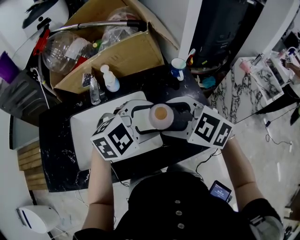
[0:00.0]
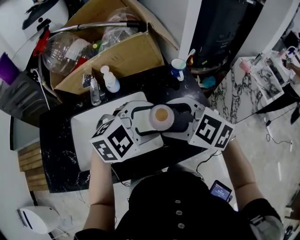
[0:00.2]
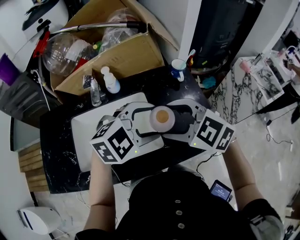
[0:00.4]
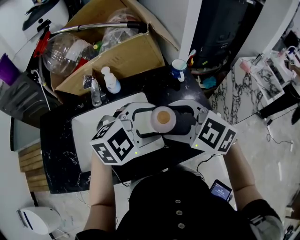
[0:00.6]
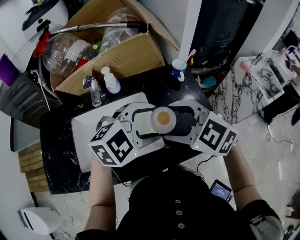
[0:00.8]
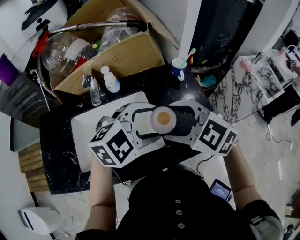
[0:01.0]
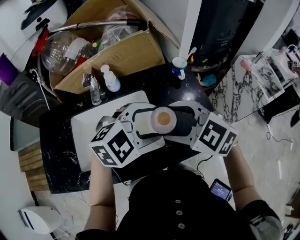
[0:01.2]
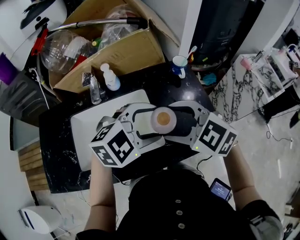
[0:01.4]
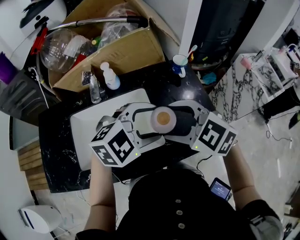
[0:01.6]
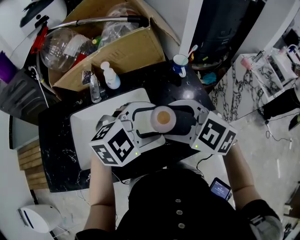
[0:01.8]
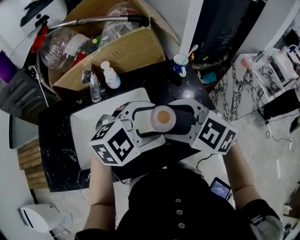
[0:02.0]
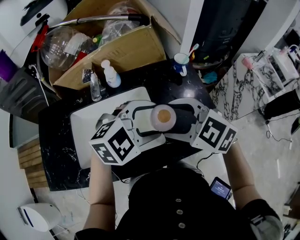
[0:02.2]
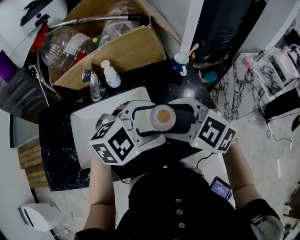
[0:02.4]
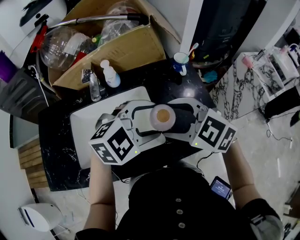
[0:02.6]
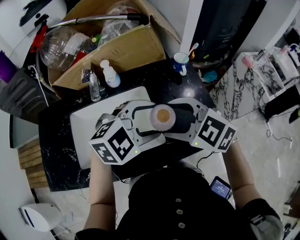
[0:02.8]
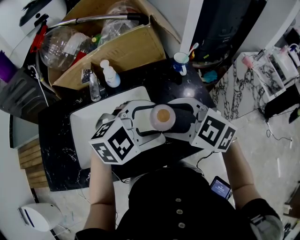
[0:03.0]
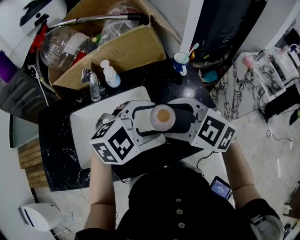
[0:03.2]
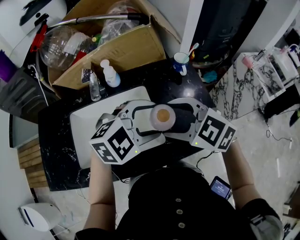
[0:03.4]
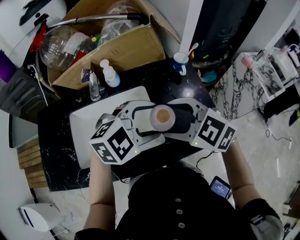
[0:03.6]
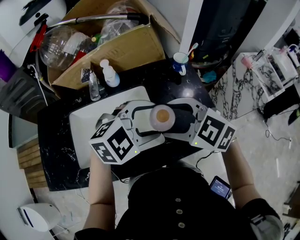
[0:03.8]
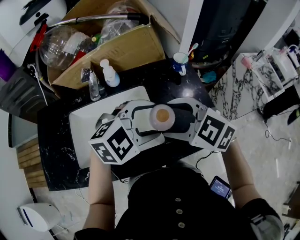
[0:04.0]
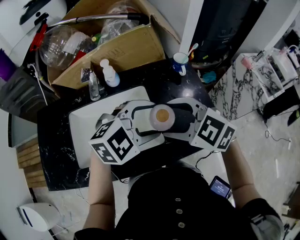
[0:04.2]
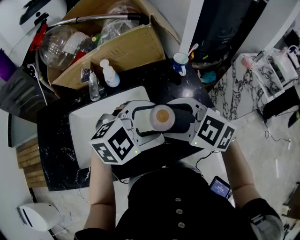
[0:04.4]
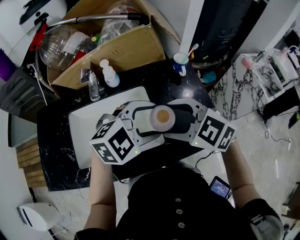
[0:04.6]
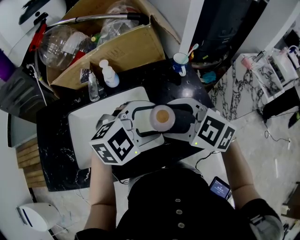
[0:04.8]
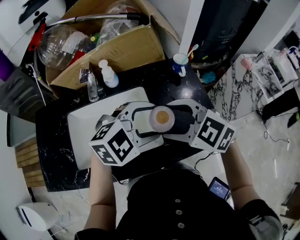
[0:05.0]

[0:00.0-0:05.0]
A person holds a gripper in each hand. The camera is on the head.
0:00.0 to 0:01.6: The grippers stay close to where they were, moving slightly.
0:01.6 to 0:03.4: Neither gripper changes place.
0:03.4 to 0:05.0: Neither gripper changes place.

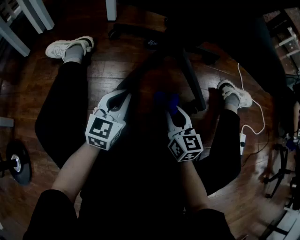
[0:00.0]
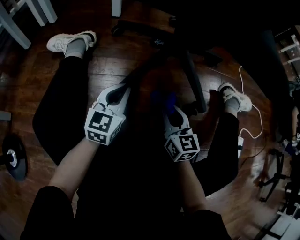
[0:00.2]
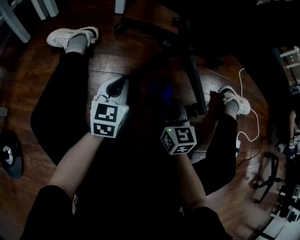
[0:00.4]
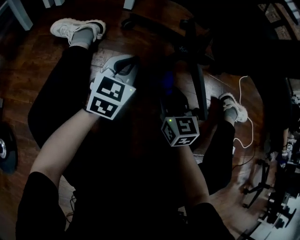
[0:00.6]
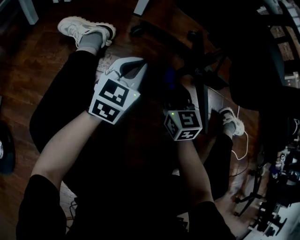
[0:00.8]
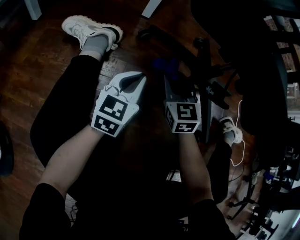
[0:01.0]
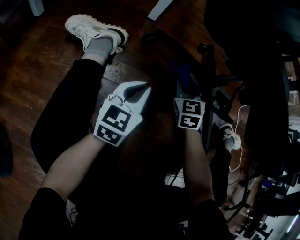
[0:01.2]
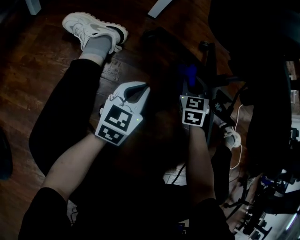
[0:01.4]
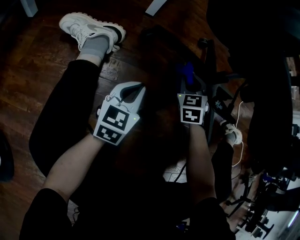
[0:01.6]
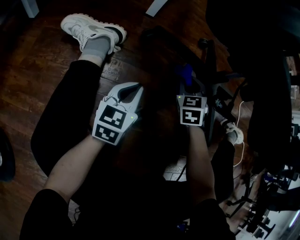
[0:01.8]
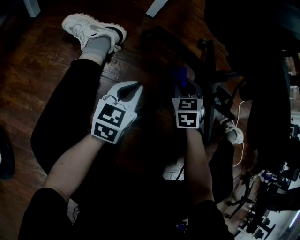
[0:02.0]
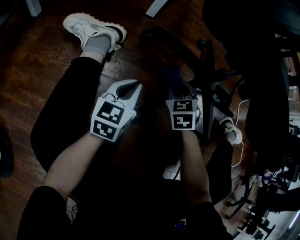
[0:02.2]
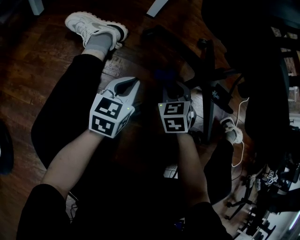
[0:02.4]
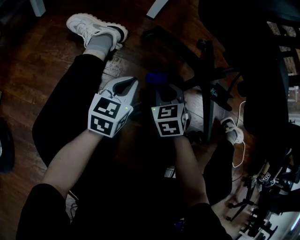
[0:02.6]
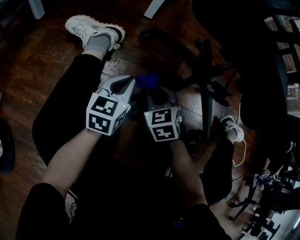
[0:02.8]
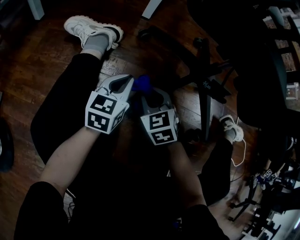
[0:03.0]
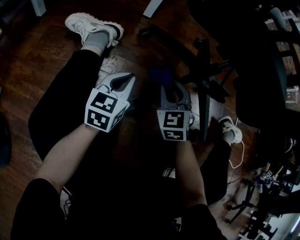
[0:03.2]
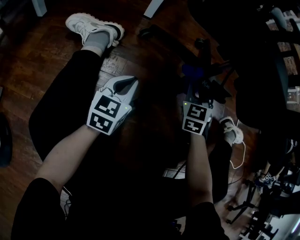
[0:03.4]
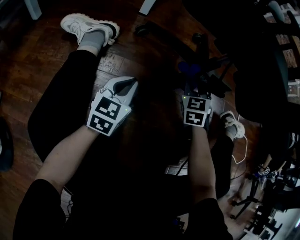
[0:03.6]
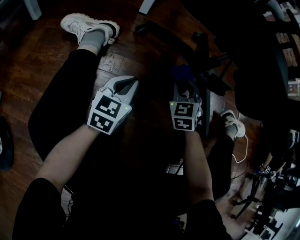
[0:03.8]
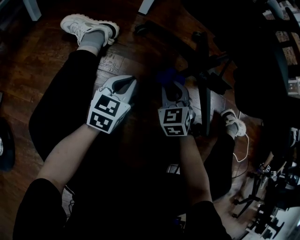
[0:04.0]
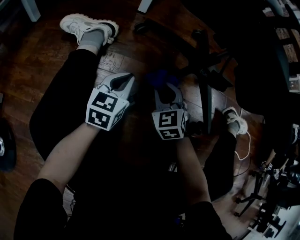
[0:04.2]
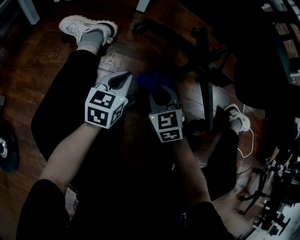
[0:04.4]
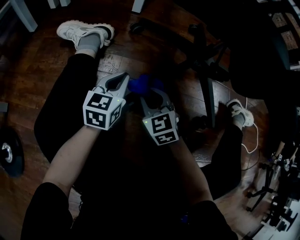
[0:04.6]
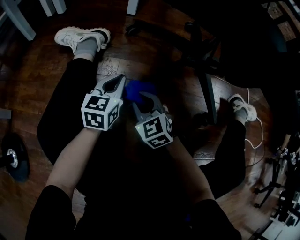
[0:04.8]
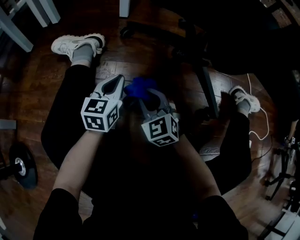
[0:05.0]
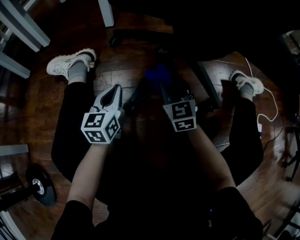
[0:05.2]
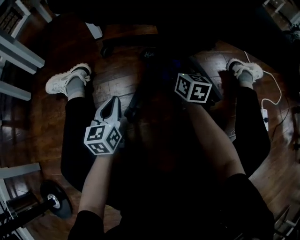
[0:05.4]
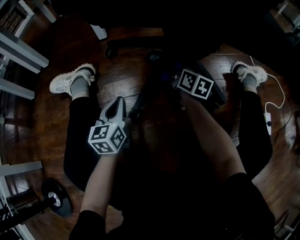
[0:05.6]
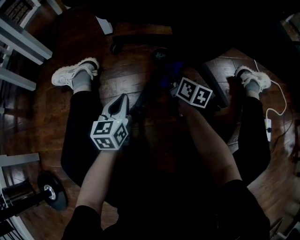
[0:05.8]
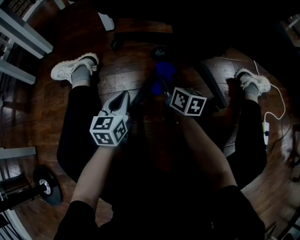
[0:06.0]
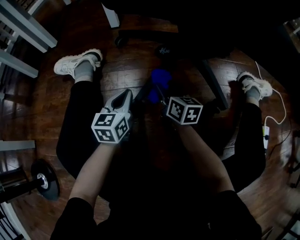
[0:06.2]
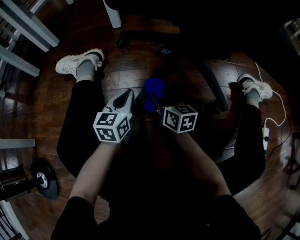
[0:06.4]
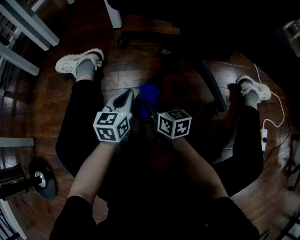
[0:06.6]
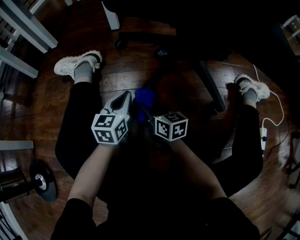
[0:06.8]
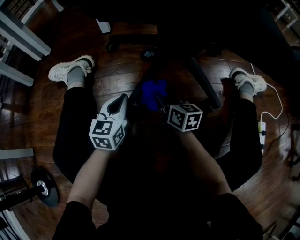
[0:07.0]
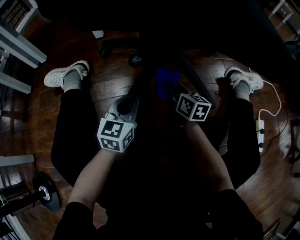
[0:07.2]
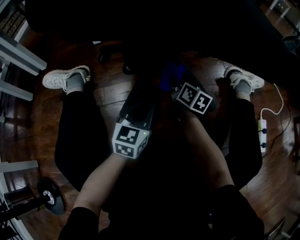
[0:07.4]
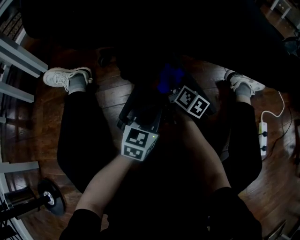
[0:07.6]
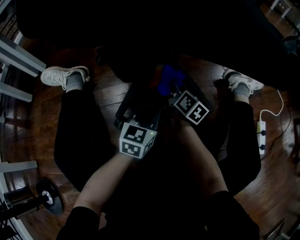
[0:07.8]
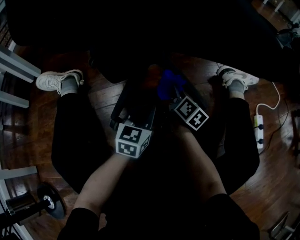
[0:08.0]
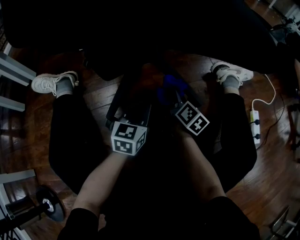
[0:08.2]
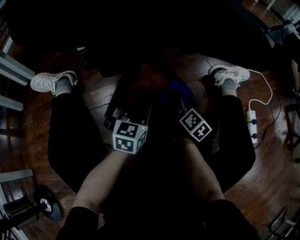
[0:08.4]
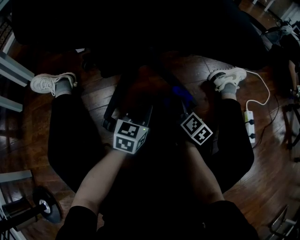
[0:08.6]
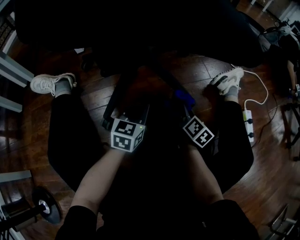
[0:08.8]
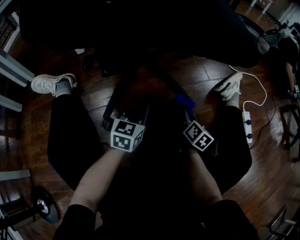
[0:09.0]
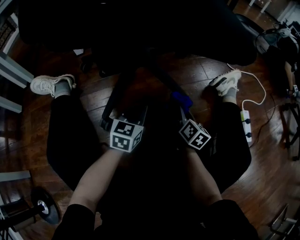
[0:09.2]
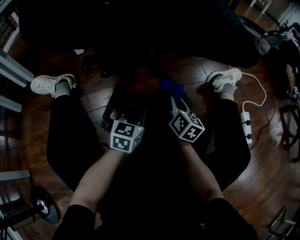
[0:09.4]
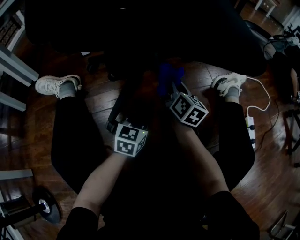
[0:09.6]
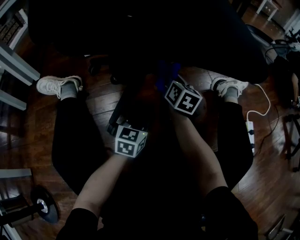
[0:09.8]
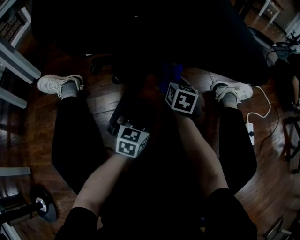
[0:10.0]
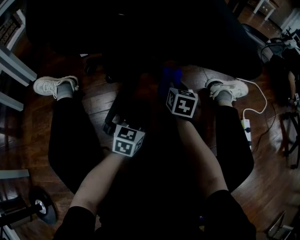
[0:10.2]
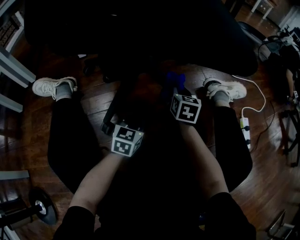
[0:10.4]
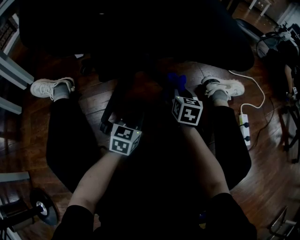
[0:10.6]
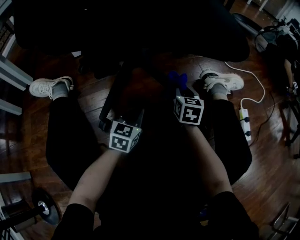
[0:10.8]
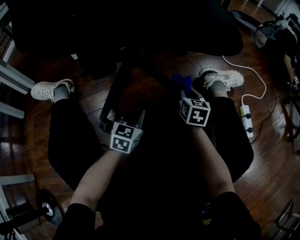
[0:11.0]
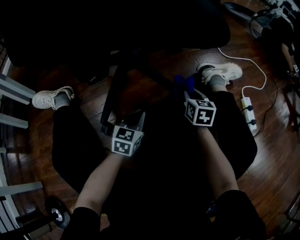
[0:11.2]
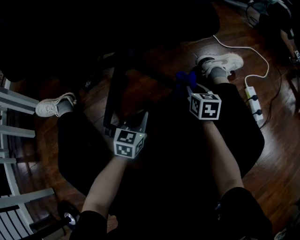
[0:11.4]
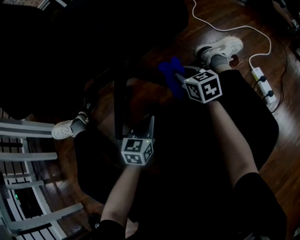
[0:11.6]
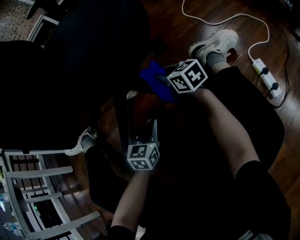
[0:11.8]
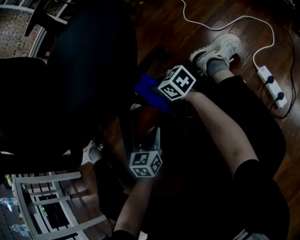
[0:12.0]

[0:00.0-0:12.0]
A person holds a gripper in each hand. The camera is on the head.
0:00.0 to 0:01.6: The left gripper heads forward and to the left, covering approximately 15 cm. Meanwhile the right gripper travels forward and to the left by about 25 cm, and rotates around the line of its fingers by roughly 50 degrees, counterclockwise from behind.
0:01.6 to 0:03.0: The right gripper shifts roughly 20 cm backward and to the left, and rotates some 20 degrees.
0:03.0 to 0:04.4: The right gripper goes to the right and returns, approximately 15 cm each way.
0:04.4 to 0:06.0: The right gripper moves left and right over roughly 20 cm, changing direction 2 times, and rolls clockwise, seen from behind, by approximately 60 degrees.
0:06.0 to 0:07.6: The left gripper changes place by some 20 cm, and changes its angle by about 20 degrees. Meanwhile the right gripper moves approximately 10 cm, and changes its angle by about 20 degrees.
0:07.6 to 0:09.0: The right gripper travels to the right and backward by some 20 cm.
0:09.0 to 0:10.4: The right gripper heads forward, to the left and upward, covering some 15 cm, and rotates approximately 40 degrees.
0:10.4 to 0:12.0: The left gripper is displaced to the right by about 5 cm; the right gripper heads forward, covering roughly 5 cm, and rotates roughly 40 degrees.

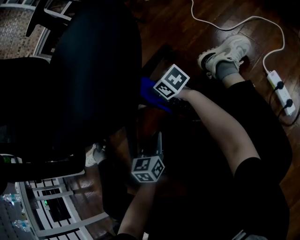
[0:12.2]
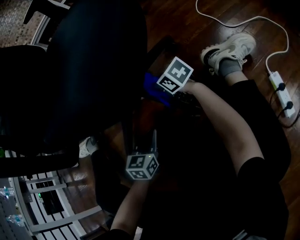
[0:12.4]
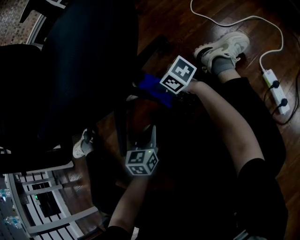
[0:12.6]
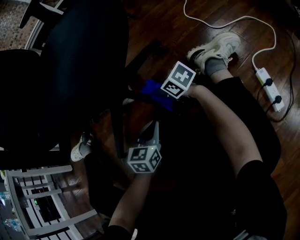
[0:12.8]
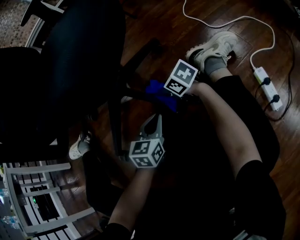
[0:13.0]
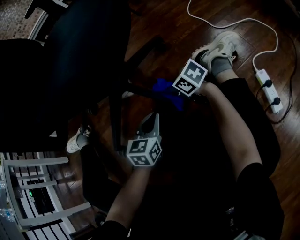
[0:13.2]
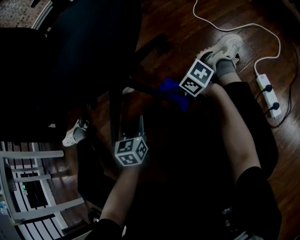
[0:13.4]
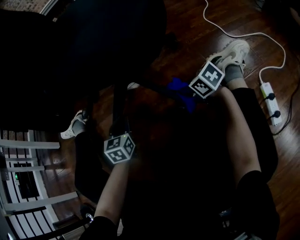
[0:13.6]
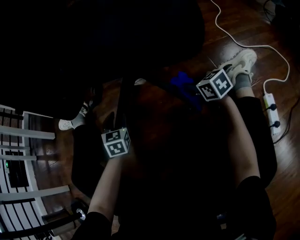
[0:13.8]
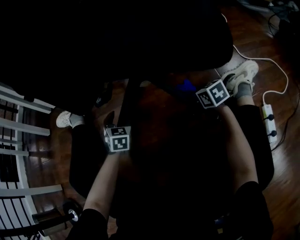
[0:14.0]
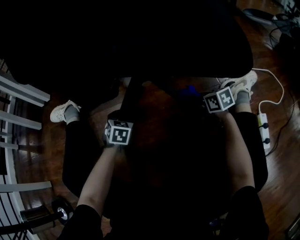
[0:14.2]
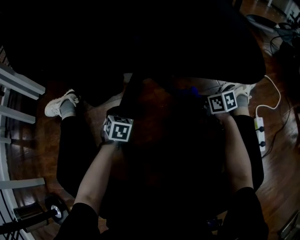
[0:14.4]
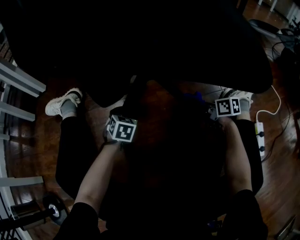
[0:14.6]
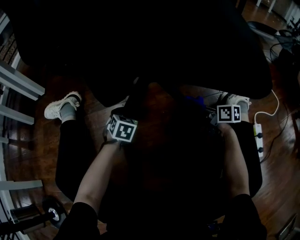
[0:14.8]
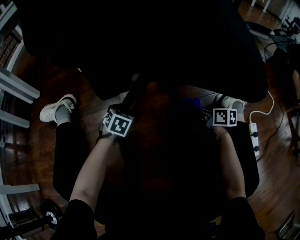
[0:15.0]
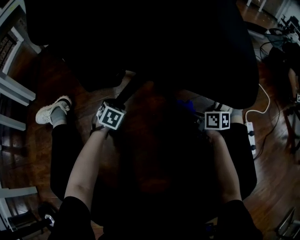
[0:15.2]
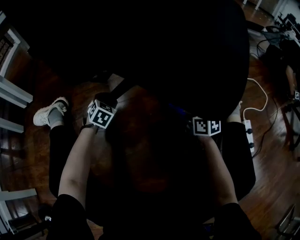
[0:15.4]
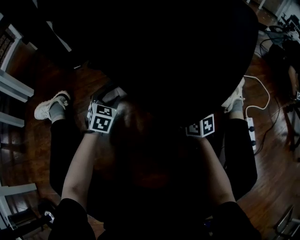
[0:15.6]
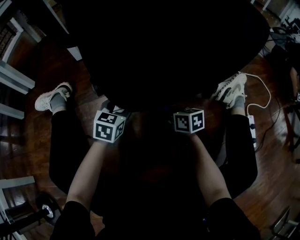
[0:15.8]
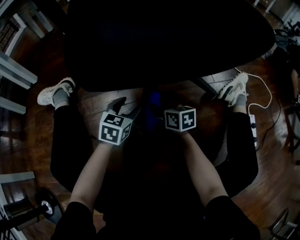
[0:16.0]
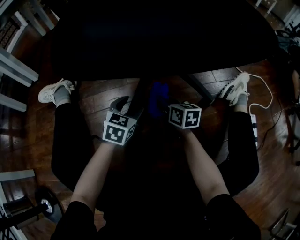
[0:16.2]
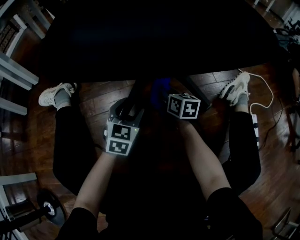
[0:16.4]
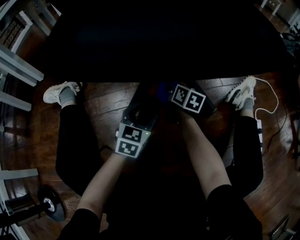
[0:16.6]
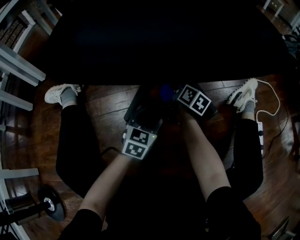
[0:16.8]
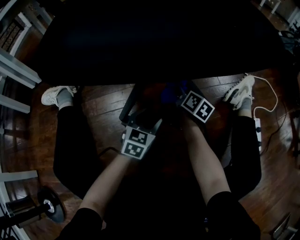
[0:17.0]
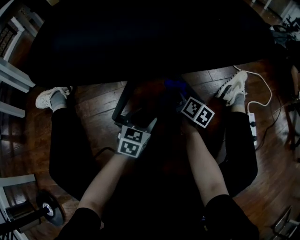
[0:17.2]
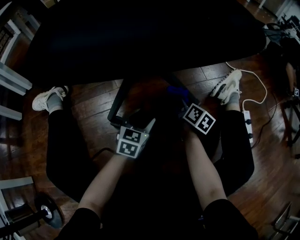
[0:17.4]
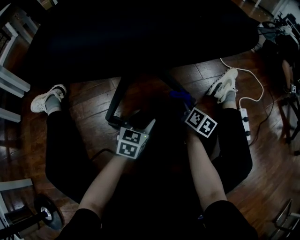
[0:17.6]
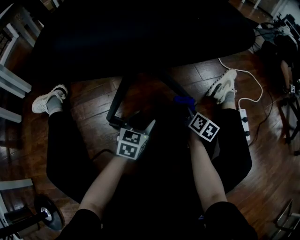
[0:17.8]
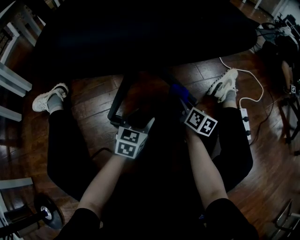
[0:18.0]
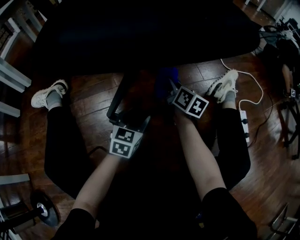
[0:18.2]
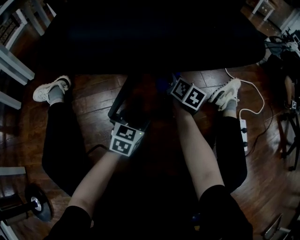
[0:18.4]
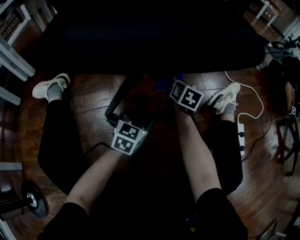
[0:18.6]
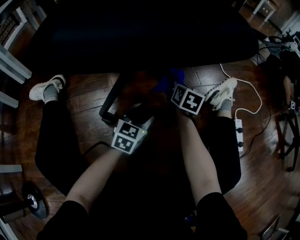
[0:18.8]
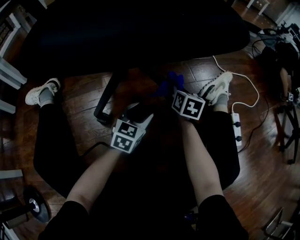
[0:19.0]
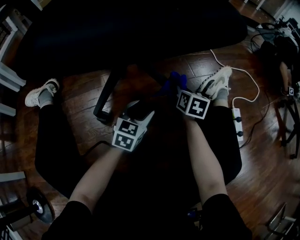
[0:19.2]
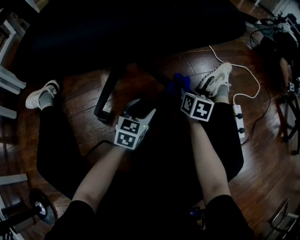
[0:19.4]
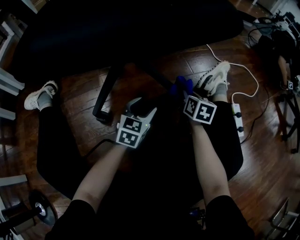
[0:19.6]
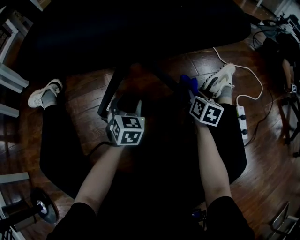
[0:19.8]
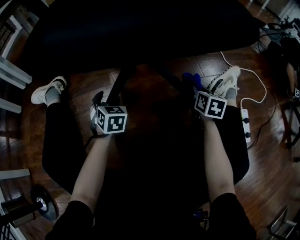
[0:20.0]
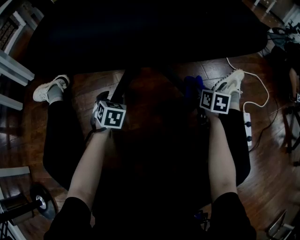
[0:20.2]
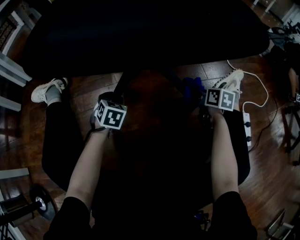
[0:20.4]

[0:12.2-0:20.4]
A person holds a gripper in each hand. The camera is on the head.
0:12.2 to 0:13.8: The left gripper travels to the left and forward by roughly 15 cm, swivels some 30 degrees, and opens; the right gripper moves backward, some 10 cm.
0:13.8 to 0:15.4: The right gripper shifts by some 5 cm, and changes its angle by about 30 degrees. Meanwhile the left gripper is displaced forward and downward by about 10 cm, and rotates roughly 30 degrees.
0:15.4 to 0:17.2: The right gripper changes its angle by some 40 degrees. The left gripper goes upward and returns, some 10 cm each way, and changes its angle by some 30 degrees.
0:17.2 to 0:18.8: The left gripper heads to the right, covering approximately 5 cm. Meanwhile the right gripper goes left and right, some 10 cm each way, reversing 2 times, and changes its angle by some 30 degrees.
0:18.8 to 0:20.4: The left gripper ends up about 20 cm from where it was, swivels roughly 30 degrees, and closes its fingers. The right gripper moves about 10 cm.
